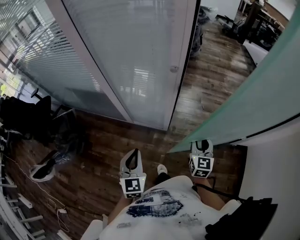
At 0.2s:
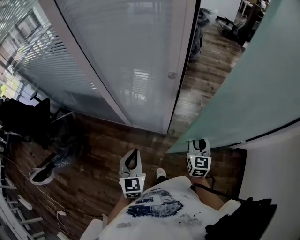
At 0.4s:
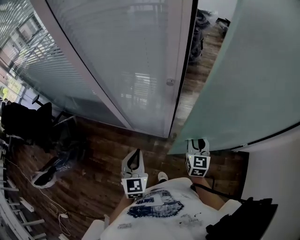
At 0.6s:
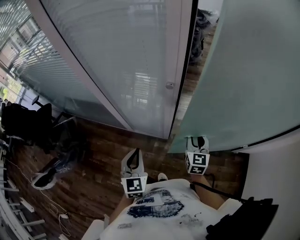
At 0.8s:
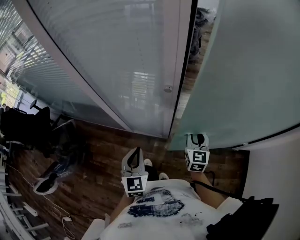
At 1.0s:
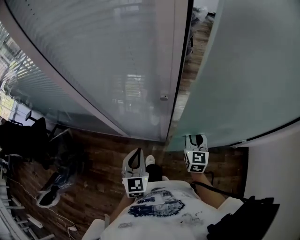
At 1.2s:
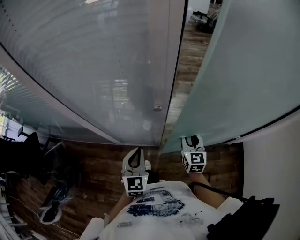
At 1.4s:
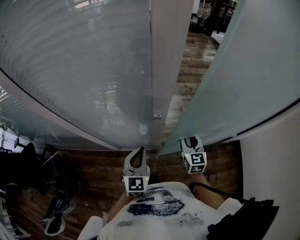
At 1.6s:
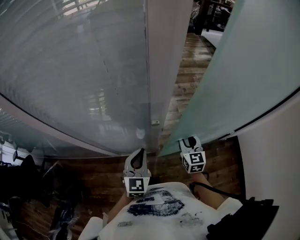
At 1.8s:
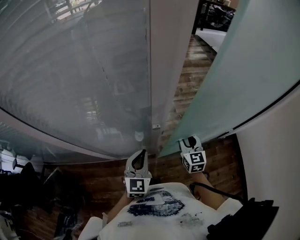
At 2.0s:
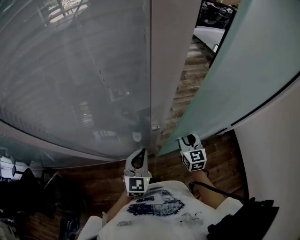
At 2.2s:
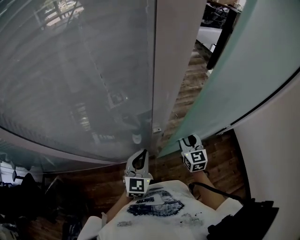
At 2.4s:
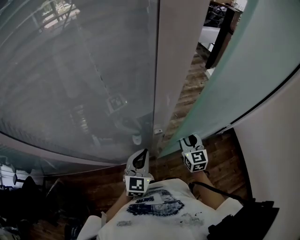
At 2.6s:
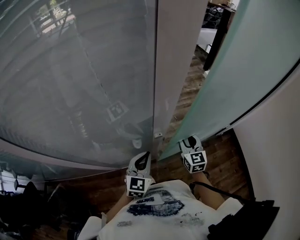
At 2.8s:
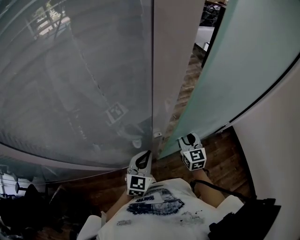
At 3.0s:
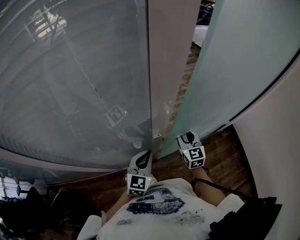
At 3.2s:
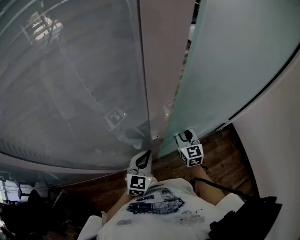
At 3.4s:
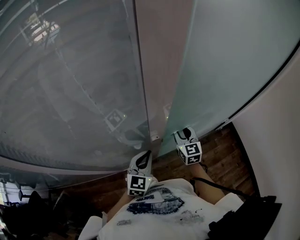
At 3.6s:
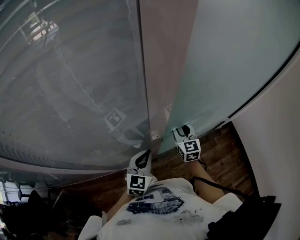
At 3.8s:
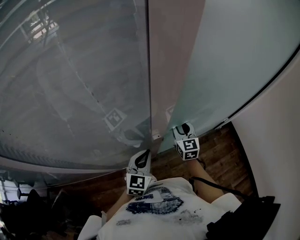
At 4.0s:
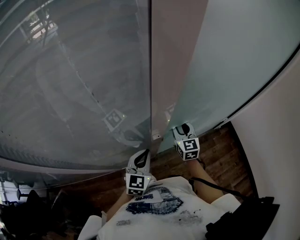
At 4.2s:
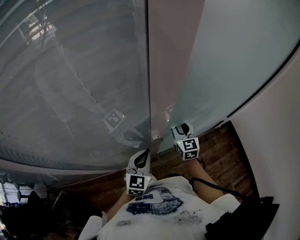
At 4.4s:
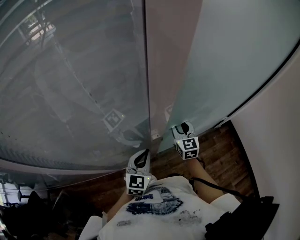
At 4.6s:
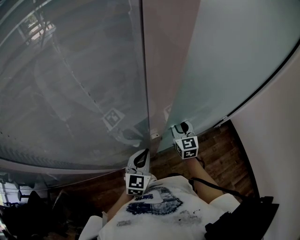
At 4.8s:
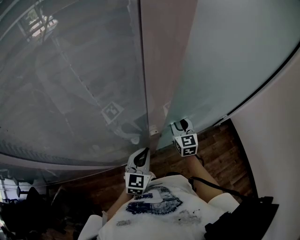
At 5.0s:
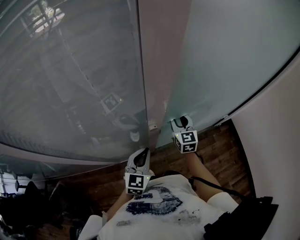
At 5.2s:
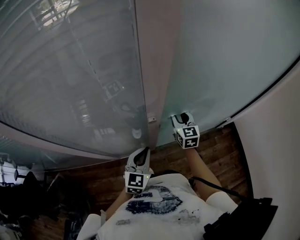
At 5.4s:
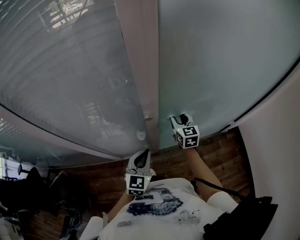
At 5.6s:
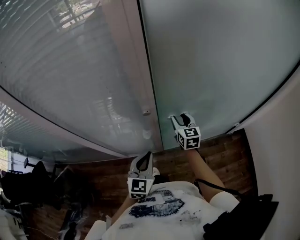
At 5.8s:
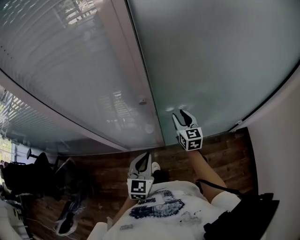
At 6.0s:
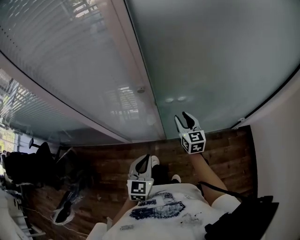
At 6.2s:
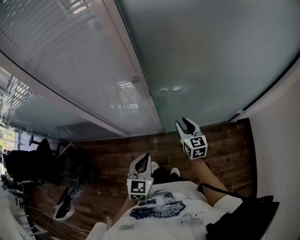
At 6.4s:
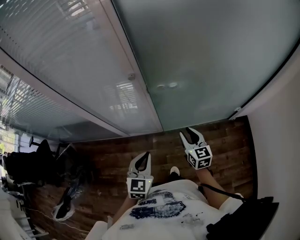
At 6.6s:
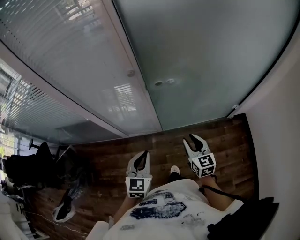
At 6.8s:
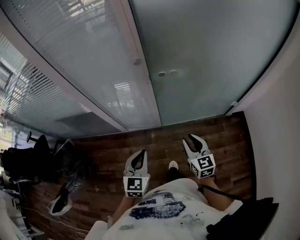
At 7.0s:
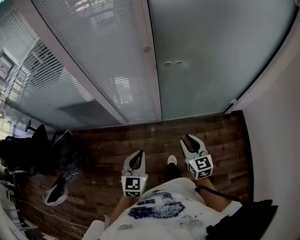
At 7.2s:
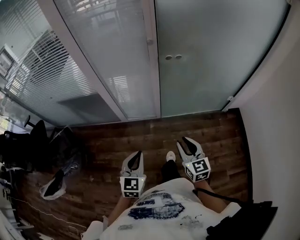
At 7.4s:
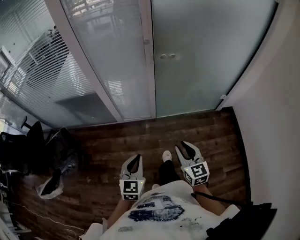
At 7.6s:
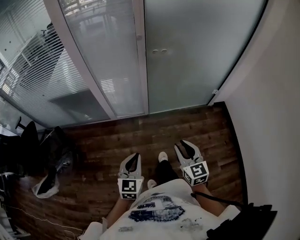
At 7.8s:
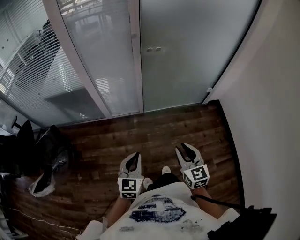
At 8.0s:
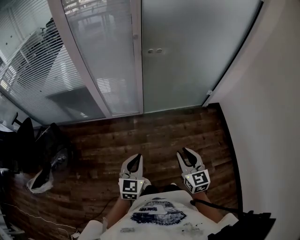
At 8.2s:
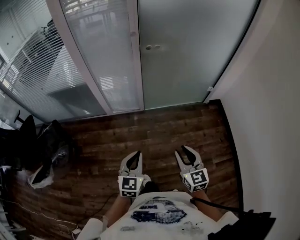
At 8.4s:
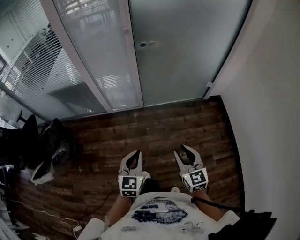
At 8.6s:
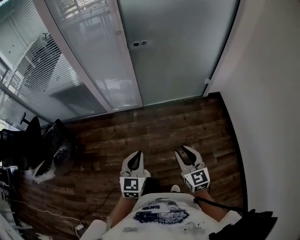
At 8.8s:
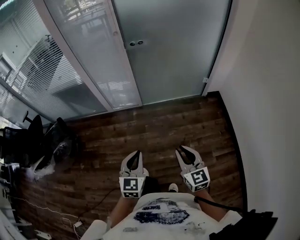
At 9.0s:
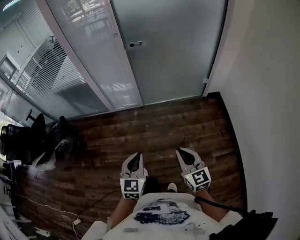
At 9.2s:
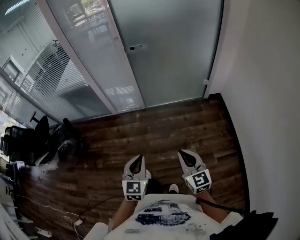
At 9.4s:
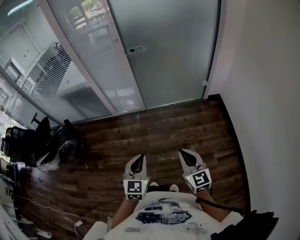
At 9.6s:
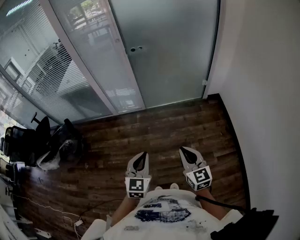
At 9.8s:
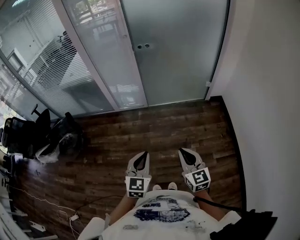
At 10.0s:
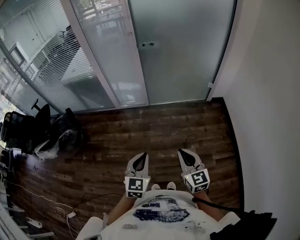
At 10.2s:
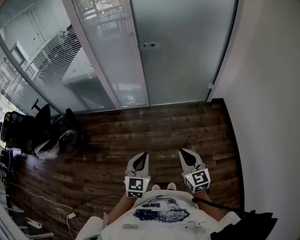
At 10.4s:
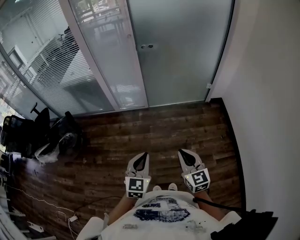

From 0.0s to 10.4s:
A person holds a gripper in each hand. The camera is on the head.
From 0.0s to 1.4s: The two grippers go some 20 cm forward. The left gripper turns by about 20 degrees.
From 1.4s to 3.0s: The left gripper heads forward, covering some 5 cm, and changes its angle by approximately 30 degrees.
From 3.0s to 4.4s: The right gripper ends up roughly 5 cm from where it was.
From 4.4s to 6.0s: The left gripper moves backward, some 20 cm, and rotates about 20 degrees; the right gripper goes approximately 10 cm backward, and swivels some 20 degrees.
From 6.0s to 7.4s: The grippers both shift backward by some 40 cm.
From 7.4s to 9.0s: Both grippers travel together backward and to the right, approximately 30 cm. The right gripper closes its fingers.
From 9.0s to 10.4s: The right gripper moves roughly 5 cm, while the left gripper goes some 5 cm backward.

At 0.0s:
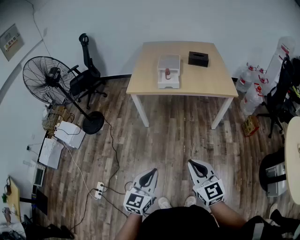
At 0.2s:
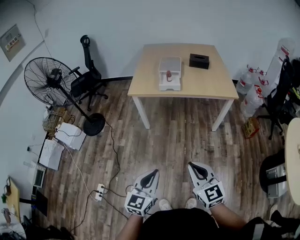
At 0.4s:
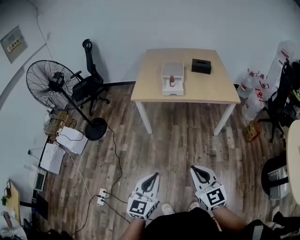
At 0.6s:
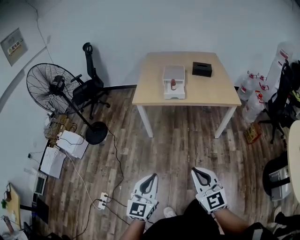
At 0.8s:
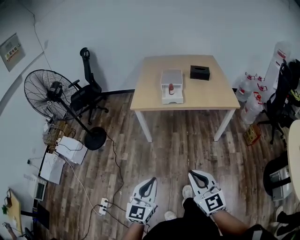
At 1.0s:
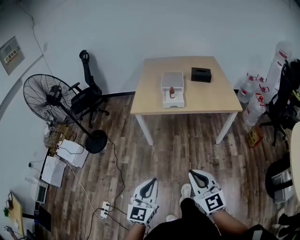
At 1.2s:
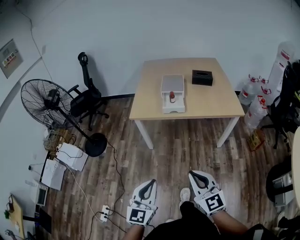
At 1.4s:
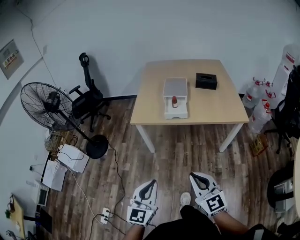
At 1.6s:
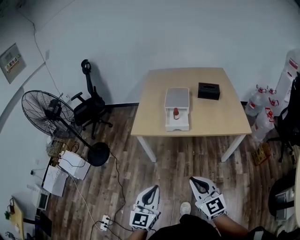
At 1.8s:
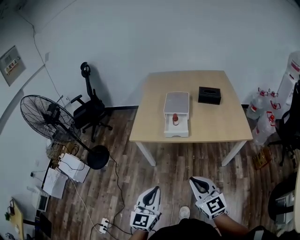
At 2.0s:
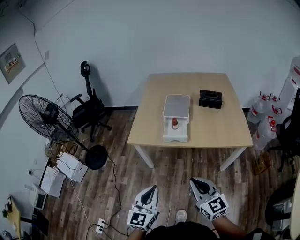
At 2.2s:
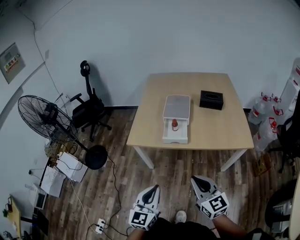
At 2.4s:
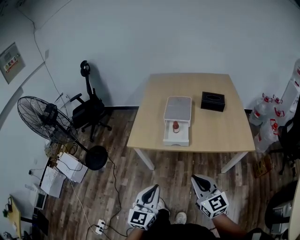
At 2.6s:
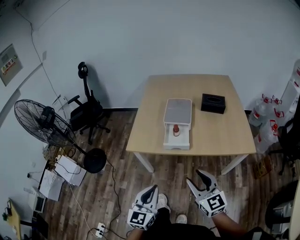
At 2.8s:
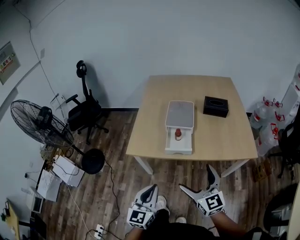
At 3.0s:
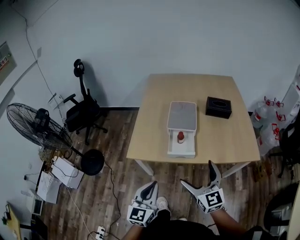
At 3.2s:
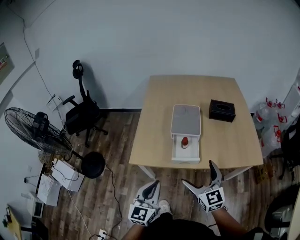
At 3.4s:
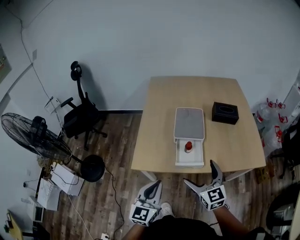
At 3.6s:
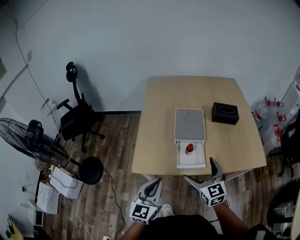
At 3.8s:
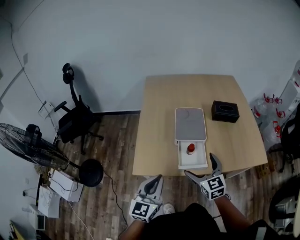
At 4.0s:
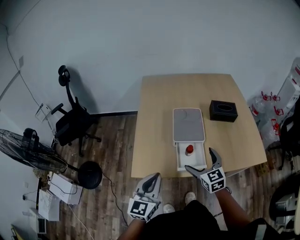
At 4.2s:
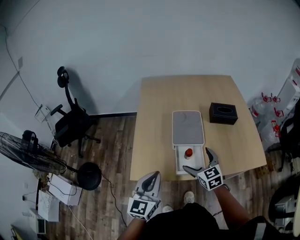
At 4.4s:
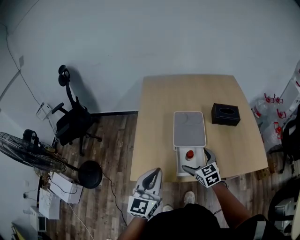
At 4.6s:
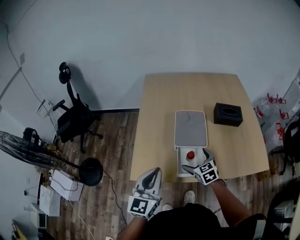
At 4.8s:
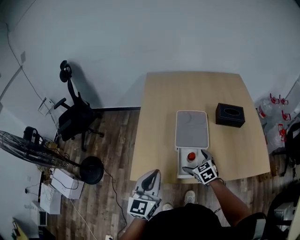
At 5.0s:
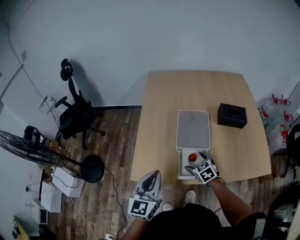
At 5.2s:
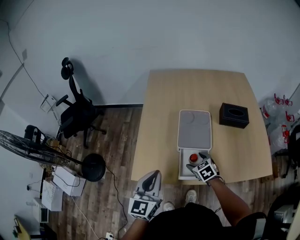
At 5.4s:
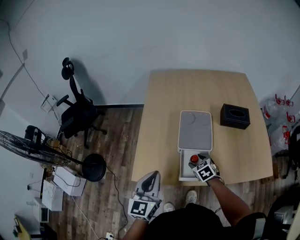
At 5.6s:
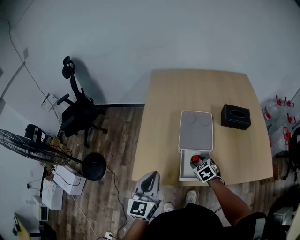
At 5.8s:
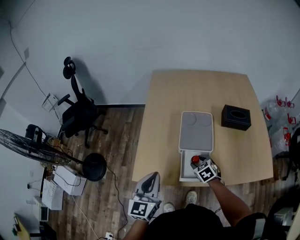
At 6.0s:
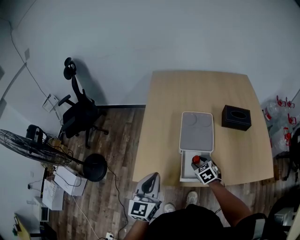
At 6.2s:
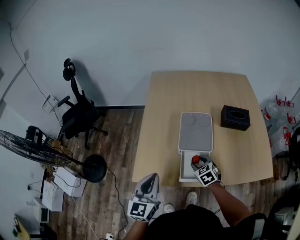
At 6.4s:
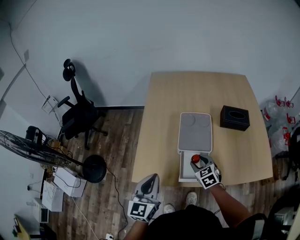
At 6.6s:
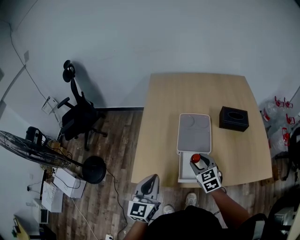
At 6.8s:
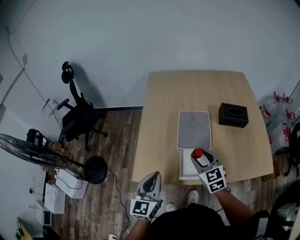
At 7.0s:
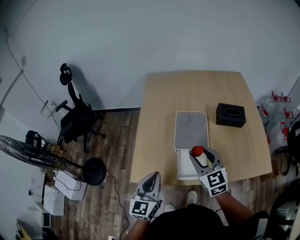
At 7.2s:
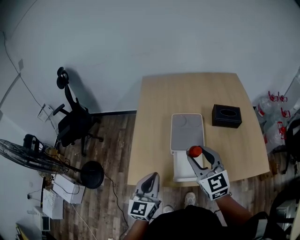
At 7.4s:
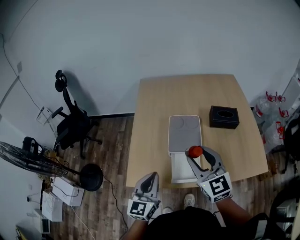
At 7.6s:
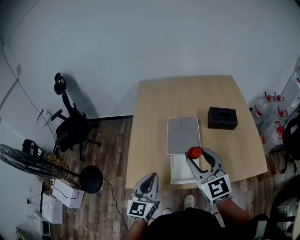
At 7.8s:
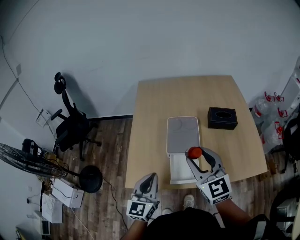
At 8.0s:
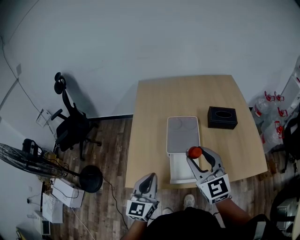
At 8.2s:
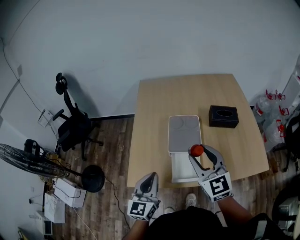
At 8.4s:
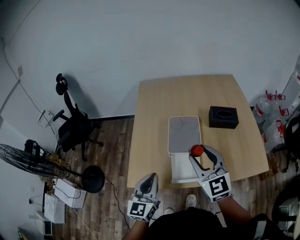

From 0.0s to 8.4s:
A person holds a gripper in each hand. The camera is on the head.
From 0.0s to 1.4s: The two grippers go approximately 15 cm forward.
From 1.4s to 2.8s: Both grippers travel together forward, approximately 25 cm. The right gripper opens.
From 2.8s to 4.2s: The grippers both shift forward by approximately 25 cm. The right gripper turns by about 20 degrees.
From 4.2s to 5.6s: The right gripper travels downward and forward by approximately 15 cm, turns by roughly 30 degrees, and closes up, while the left gripper ends up some 5 cm from where it was.
From 5.6s to 7.0s: The right gripper heads upward, covering roughly 25 cm, and tips its fingers upward by roughly 40 degrees.
From 7.0s to 8.4s: The right gripper goes approximately 10 cm upward.

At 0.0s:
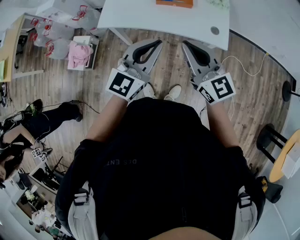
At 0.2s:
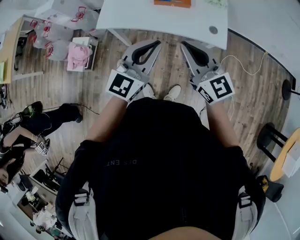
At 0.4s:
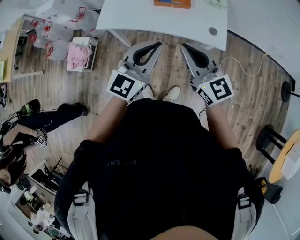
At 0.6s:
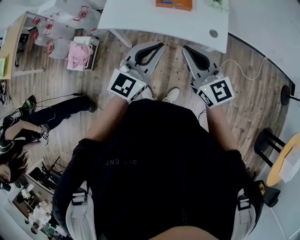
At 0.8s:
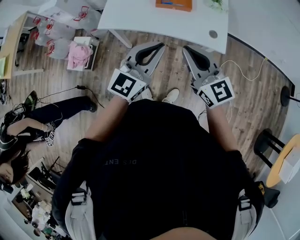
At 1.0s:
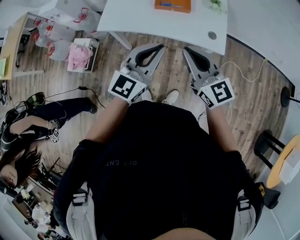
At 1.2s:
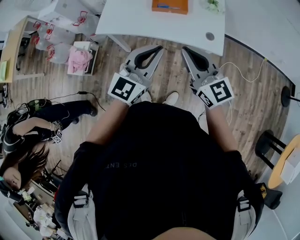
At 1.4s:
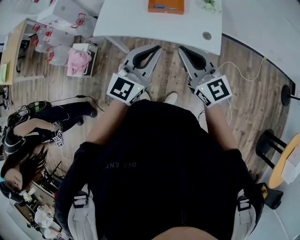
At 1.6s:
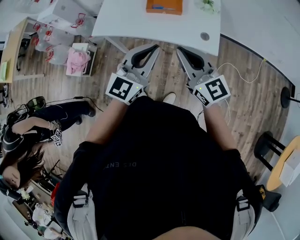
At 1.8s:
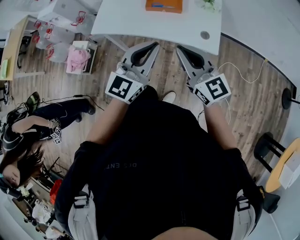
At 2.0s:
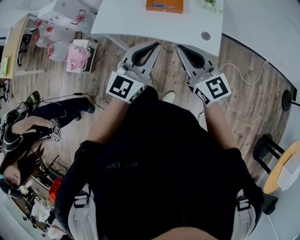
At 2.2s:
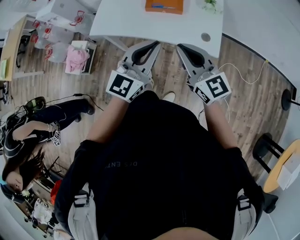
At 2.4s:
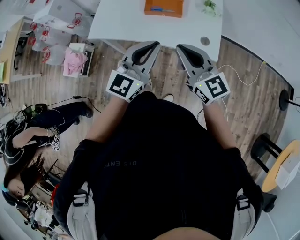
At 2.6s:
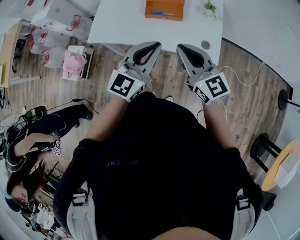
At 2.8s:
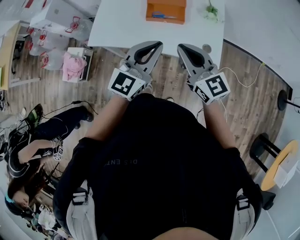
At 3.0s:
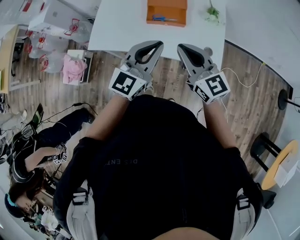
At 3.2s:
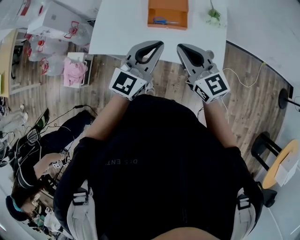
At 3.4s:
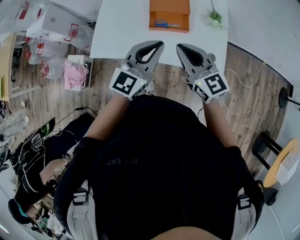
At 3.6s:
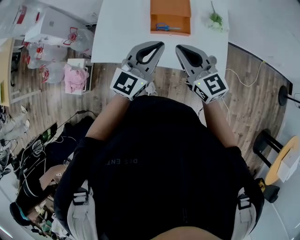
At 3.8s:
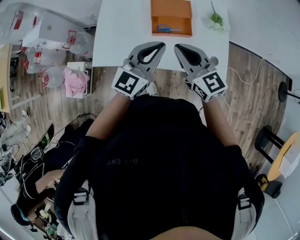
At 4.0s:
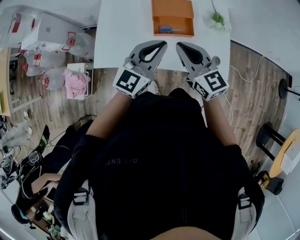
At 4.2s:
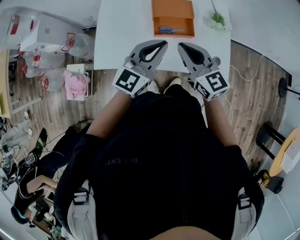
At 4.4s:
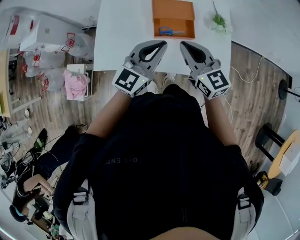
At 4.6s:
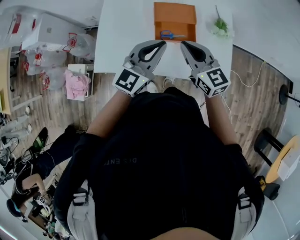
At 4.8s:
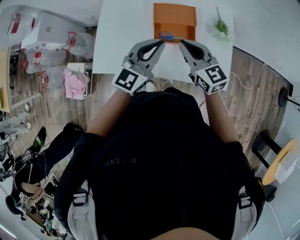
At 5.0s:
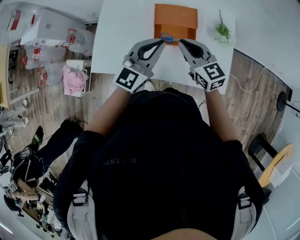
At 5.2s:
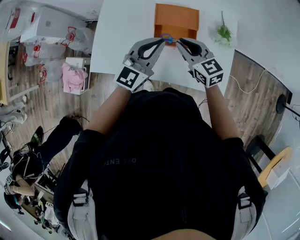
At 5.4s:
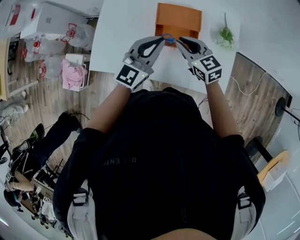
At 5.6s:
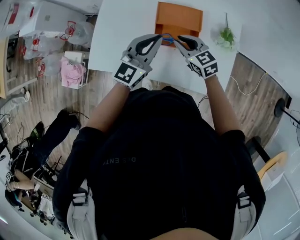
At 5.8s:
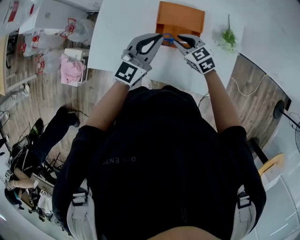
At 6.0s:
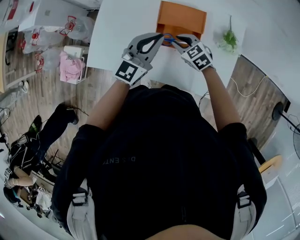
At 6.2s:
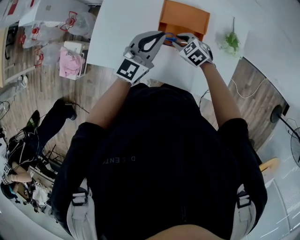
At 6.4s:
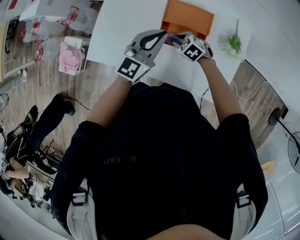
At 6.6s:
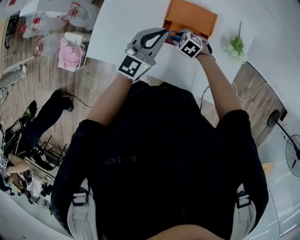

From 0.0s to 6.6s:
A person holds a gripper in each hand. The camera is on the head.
From 0.0s to 1.6s: The two grippers go roughly 5 cm to the right.
From 1.6s to 3.2s: The grippers both shift forward by approximately 20 cm.
From 3.2s to 5.0s: The left gripper heads forward, covering about 15 cm; the right gripper heads forward and downward, covering about 20 cm.
From 5.0s to 6.6s: The right gripper heads downward, covering approximately 25 cm, points its fingers approximately 50 degrees further downward, and opens up; the left gripper is displaced forward and downward by roughly 10 cm.
